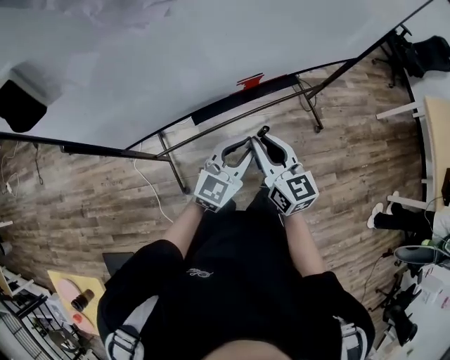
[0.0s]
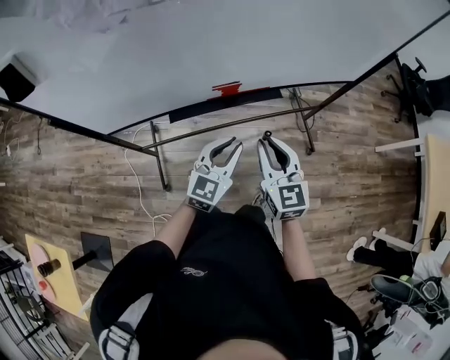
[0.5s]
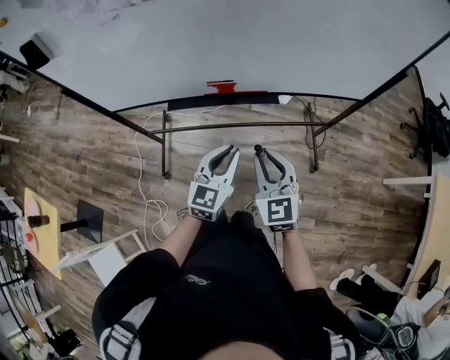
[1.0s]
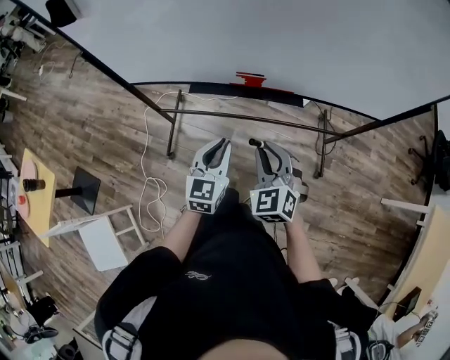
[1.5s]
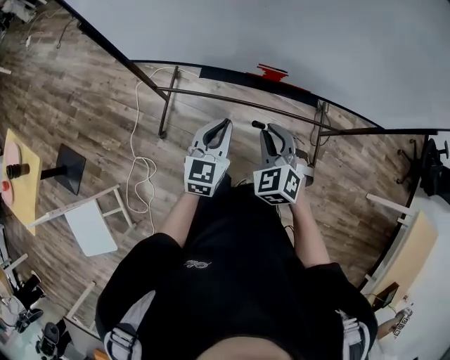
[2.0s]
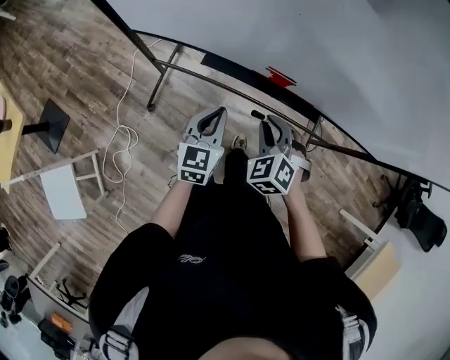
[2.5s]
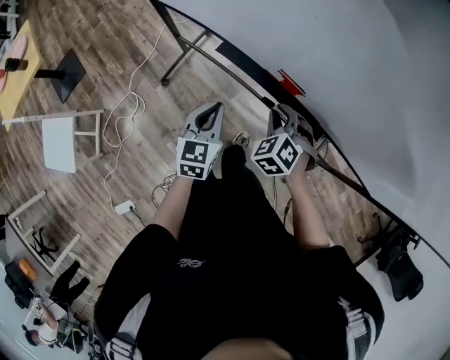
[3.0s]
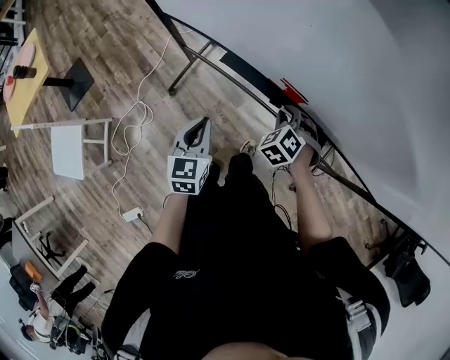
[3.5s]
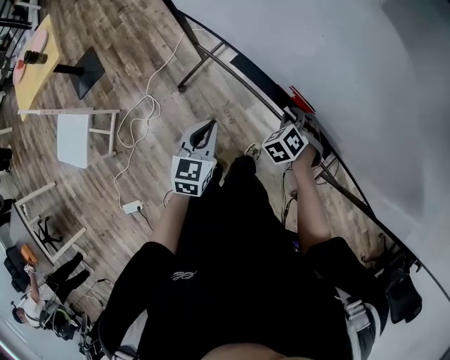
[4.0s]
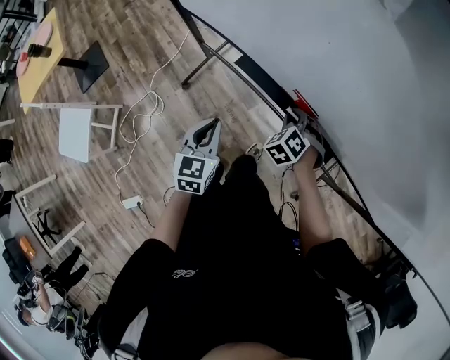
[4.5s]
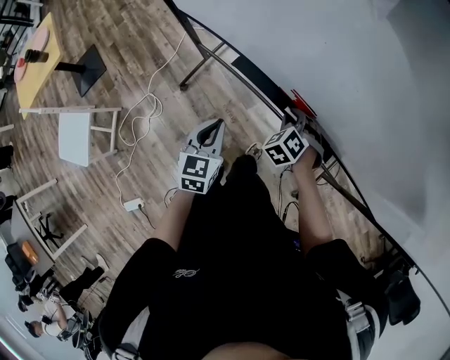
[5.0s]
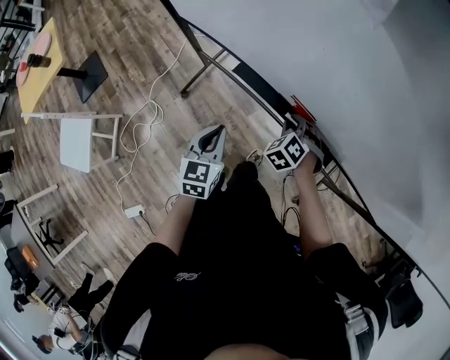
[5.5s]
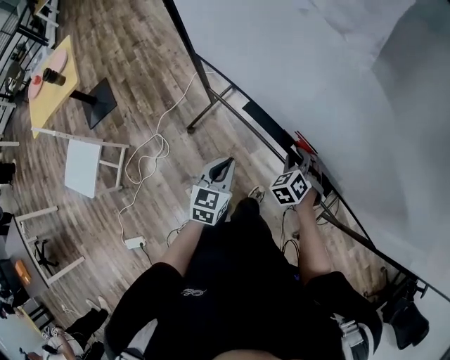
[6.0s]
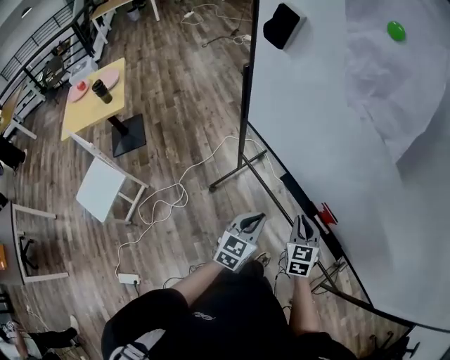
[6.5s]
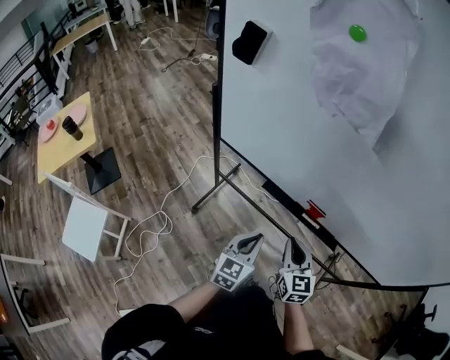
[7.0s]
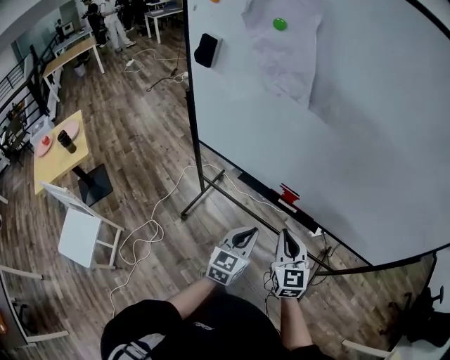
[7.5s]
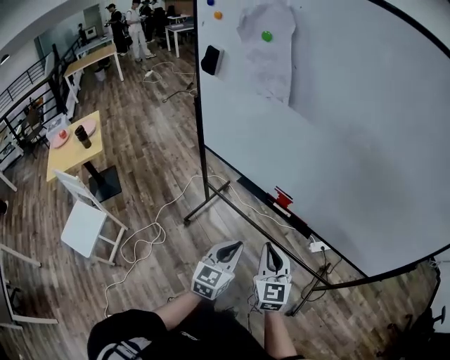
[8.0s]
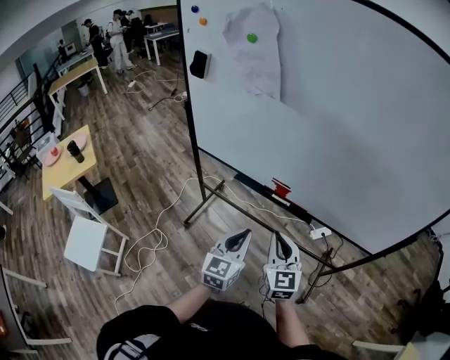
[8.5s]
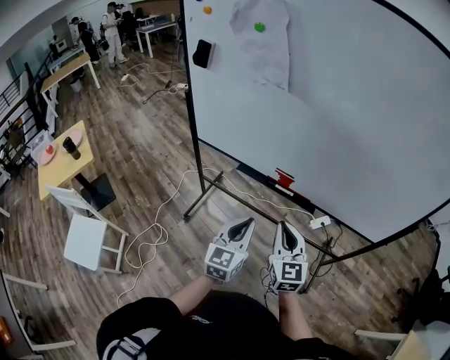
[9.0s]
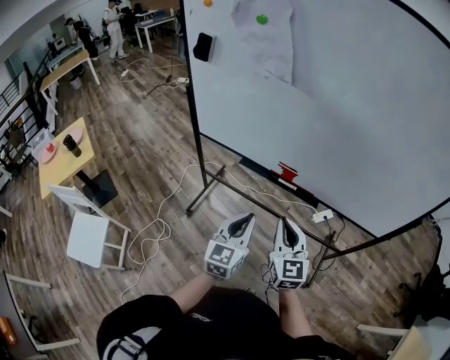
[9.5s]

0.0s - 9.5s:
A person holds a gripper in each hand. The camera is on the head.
0.0s - 2.0s: The right gripper rolls counterclockwise, seen from behind, by roughly 60 degrees; the left gripper rotates roughly 50 degrees.
2.0s - 4.0s: The left gripper is displaced downward by about 5 cm, and swivels roughly 40 degrees. Meanwhile the right gripper heads forward and downward, covering approximately 25 cm, and turns by about 30 degrees.
4.0s - 5.5s: There are only small adjustments of the grippers.
5.5s - 7.5s: The left gripper is displaced upward, backward and to the right by roughly 20 cm, and rotates some 30 degrees. Meanwhile the right gripper is displaced upward and backward by roughly 35 cm, and points its fingers roughly 50 degrees further upward.
7.5s - 9.5s: The right gripper shifts approximately 10 cm backward, while the left gripper shifts roughly 10 cm backward and upward.

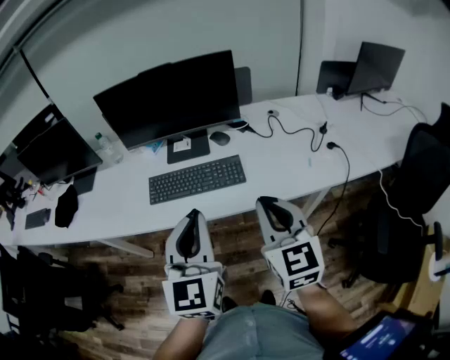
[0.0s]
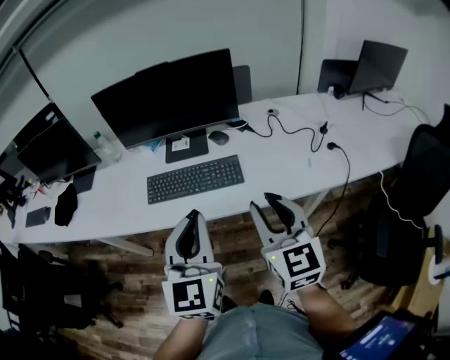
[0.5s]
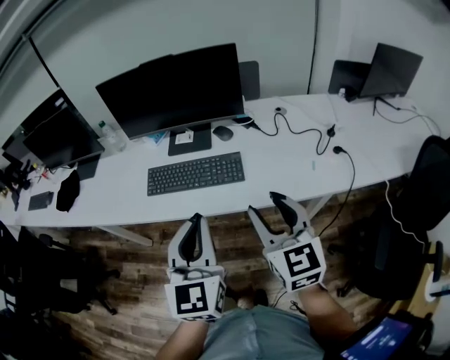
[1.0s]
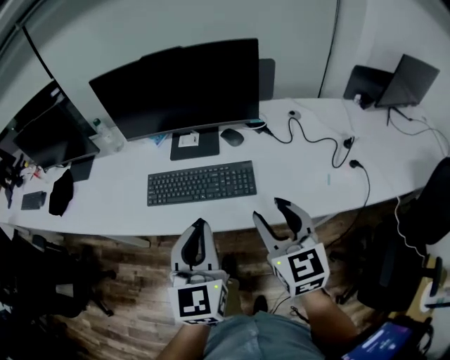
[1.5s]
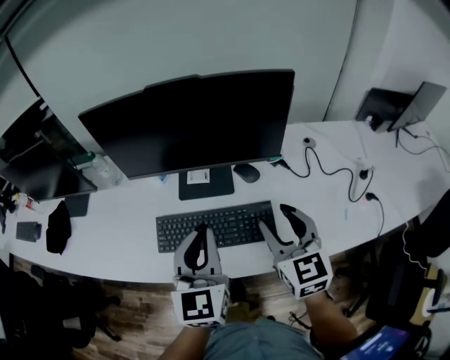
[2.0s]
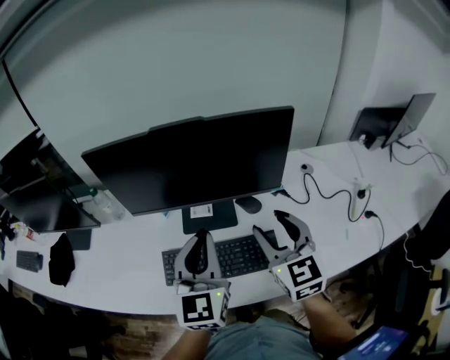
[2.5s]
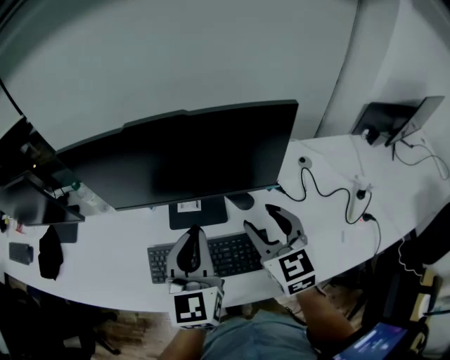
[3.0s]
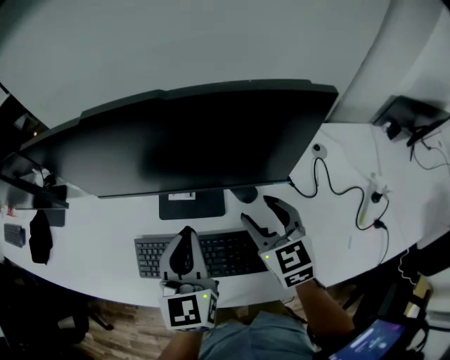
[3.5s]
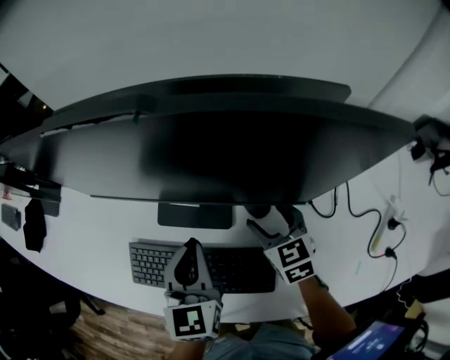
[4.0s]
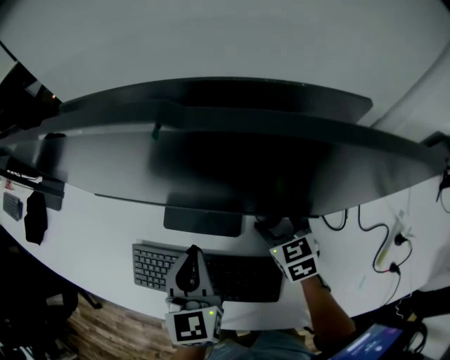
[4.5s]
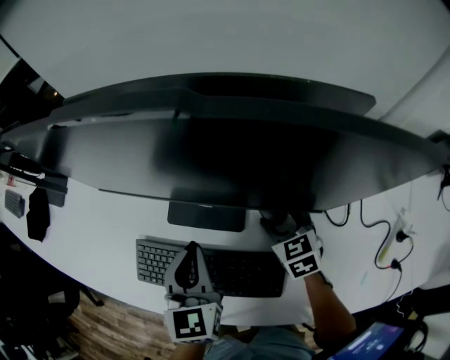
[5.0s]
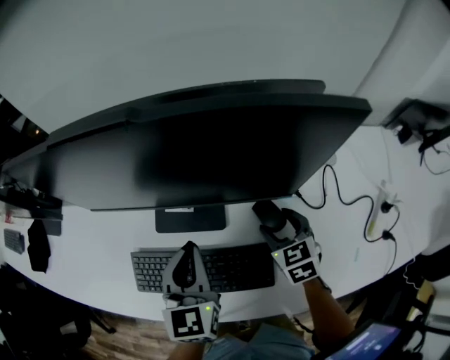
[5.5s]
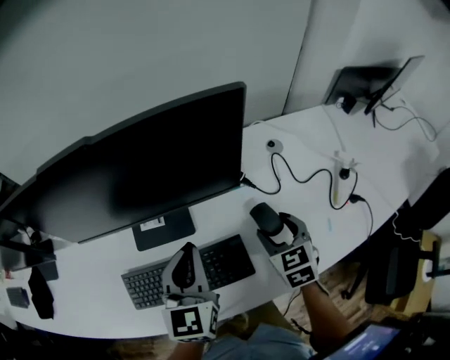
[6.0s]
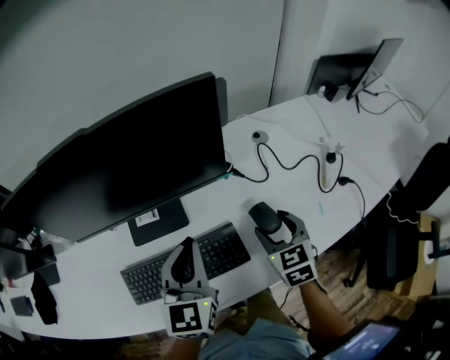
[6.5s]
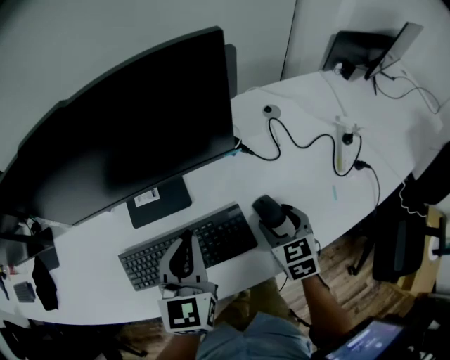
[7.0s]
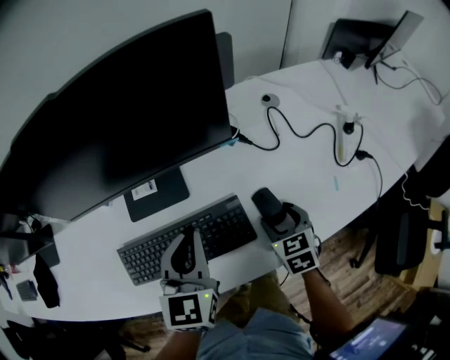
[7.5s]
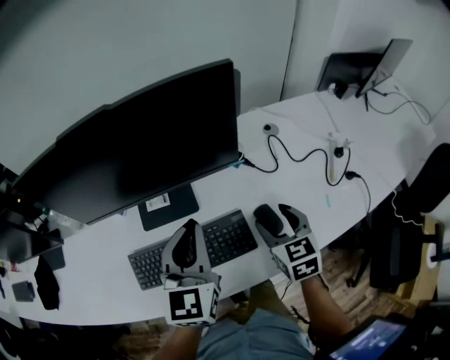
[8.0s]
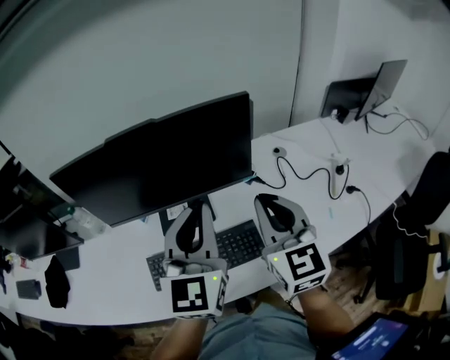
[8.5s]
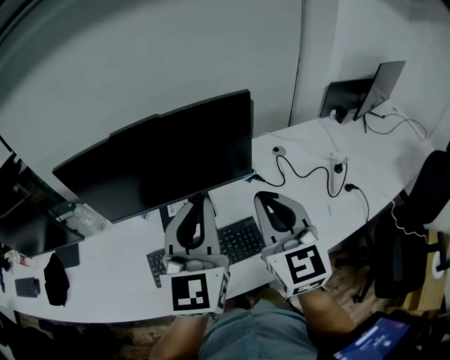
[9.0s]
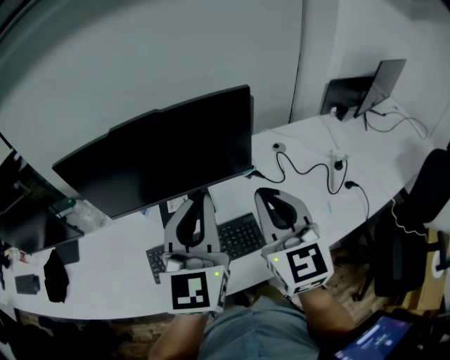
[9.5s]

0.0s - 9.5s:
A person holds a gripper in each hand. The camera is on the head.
0.0s - 2.0s: The grippers both shift forward by roughly 25 cm. The right gripper opens.
2.0s - 4.0s: The grippers both shift forward and downward by some 25 cm. The right gripper turns by about 30 degrees.
4.0s - 5.5s: The right gripper moves about 5 cm.
5.5s - 7.5s: The right gripper travels backward and to the right by approximately 15 cm, and turns by some 20 degrees; the left gripper heads to the right and backward, covering roughly 10 cm, and rotates about 20 degrees.
7.5s - 9.5s: The left gripper goes about 20 cm upward, and turns by roughly 20 degrees; the right gripper goes approximately 35 cm upward, angles its fingers upward, by roughly 40 degrees, and closes its fingers.

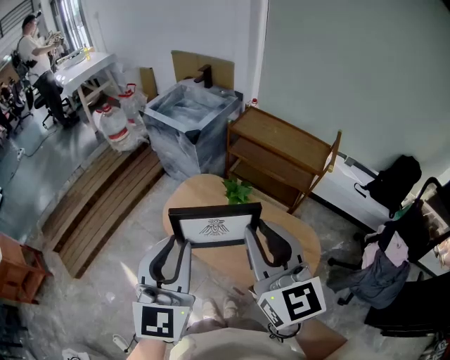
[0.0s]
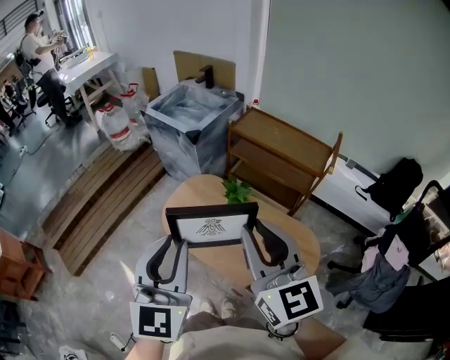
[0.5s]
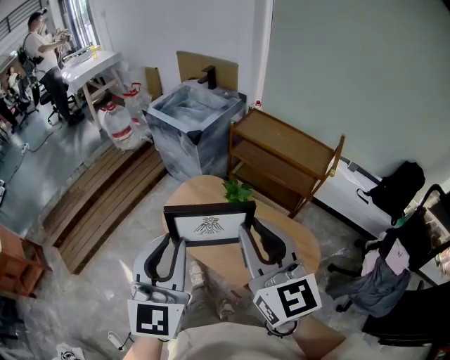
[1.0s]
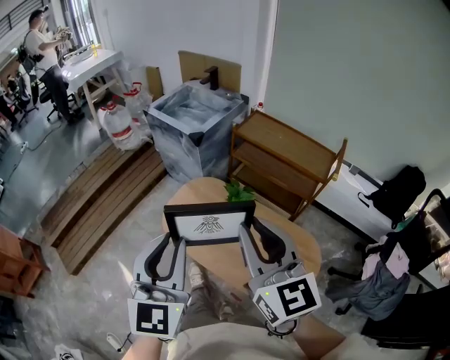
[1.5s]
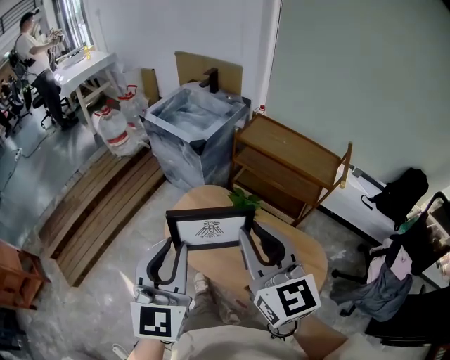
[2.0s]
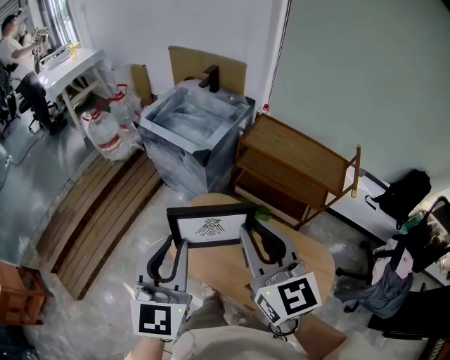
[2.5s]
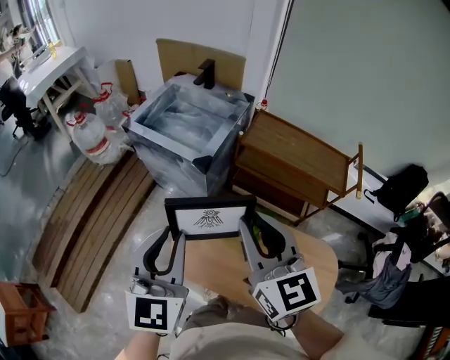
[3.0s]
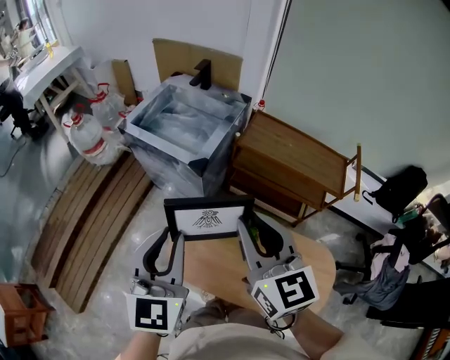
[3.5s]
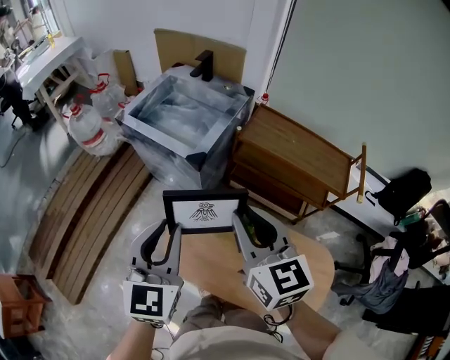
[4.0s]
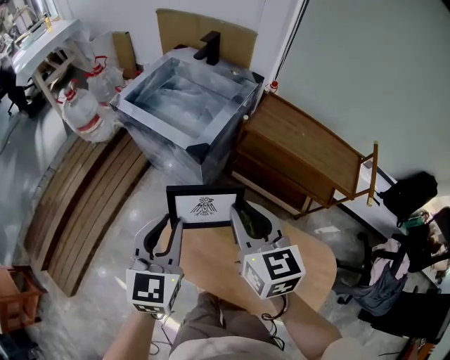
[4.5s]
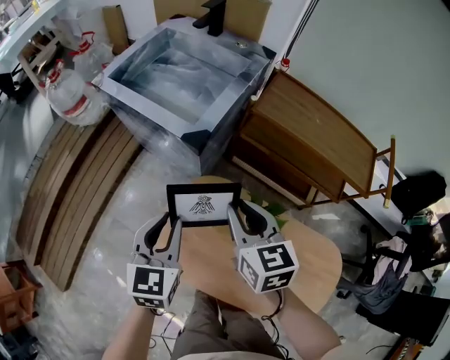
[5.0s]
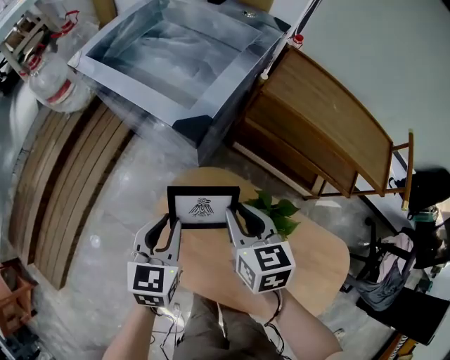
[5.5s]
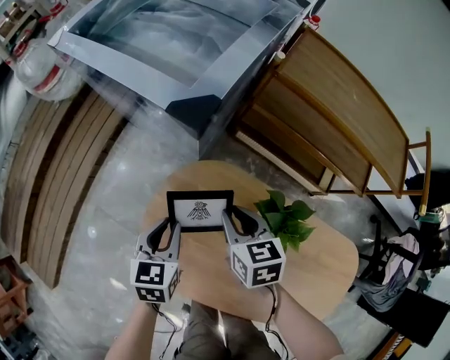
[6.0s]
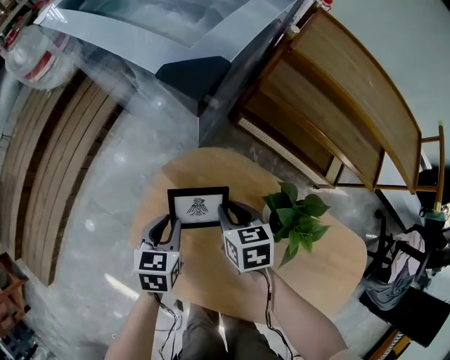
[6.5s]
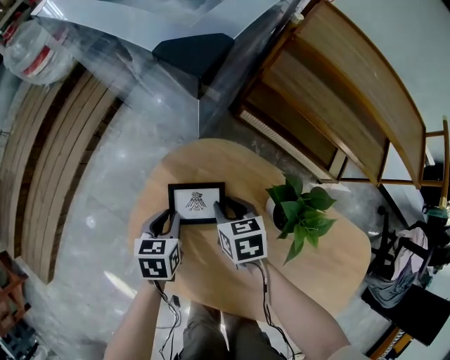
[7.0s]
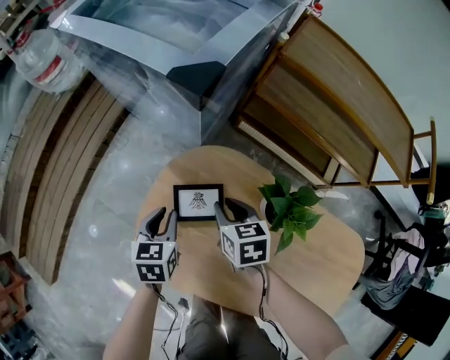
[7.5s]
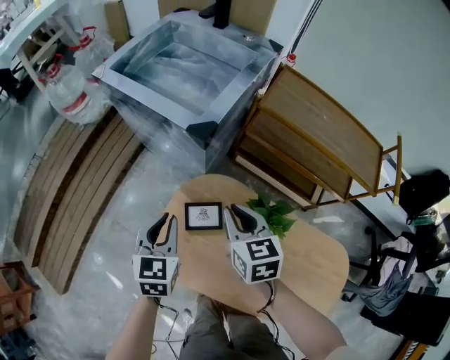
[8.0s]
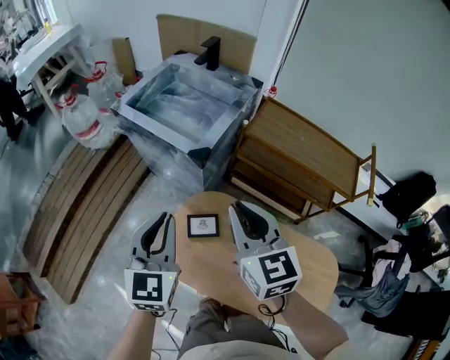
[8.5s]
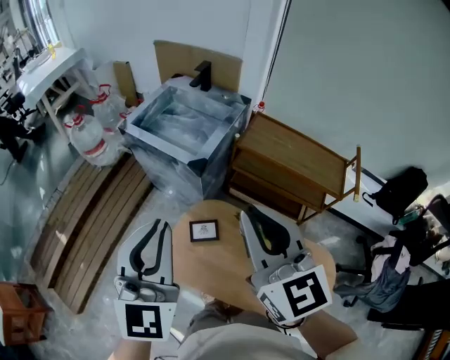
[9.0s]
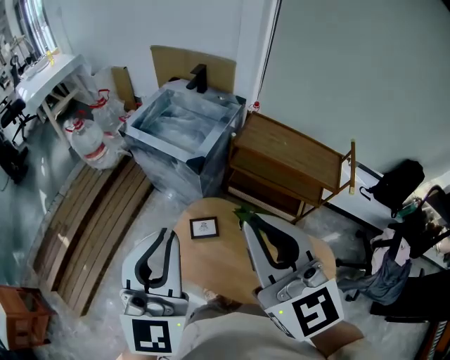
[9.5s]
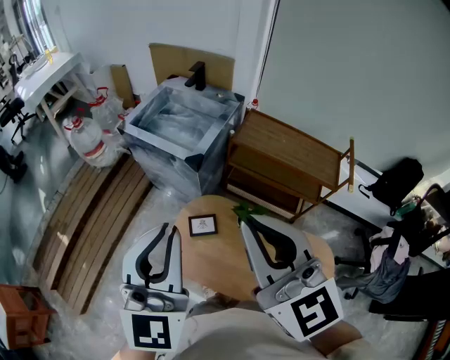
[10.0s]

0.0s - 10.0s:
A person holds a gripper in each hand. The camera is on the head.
0.0s - 2.0s: Both grippers move forward, approximately 10 cm.
2.0s - 4.0s: The two grippers go about 30 cm forward.
4.0s - 6.0s: Both grippers move downward, roughly 50 cm. The right gripper tips its fingers downward by about 30 degrees; the left gripper changes its angle by approximately 30 degrees.
6.0s - 8.0s: The two grippers go about 15 cm upward.
8.0s - 10.0s: The two grippers go approximately 50 cm upward. The right gripper tilts its fingers roughly 30 degrees upward. Meanwhile the left gripper points its fingers about 30 degrees further upward.
